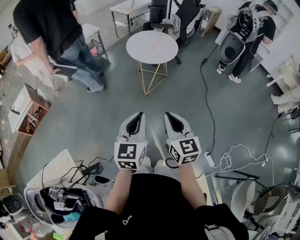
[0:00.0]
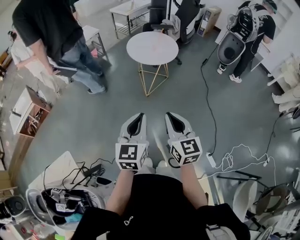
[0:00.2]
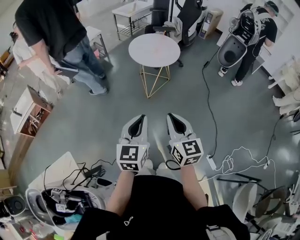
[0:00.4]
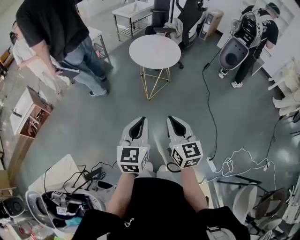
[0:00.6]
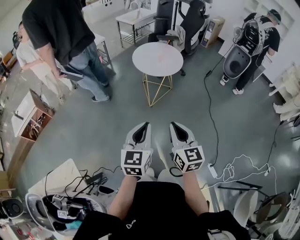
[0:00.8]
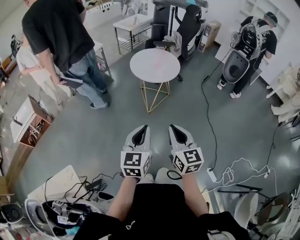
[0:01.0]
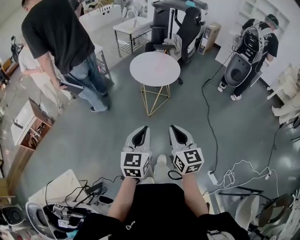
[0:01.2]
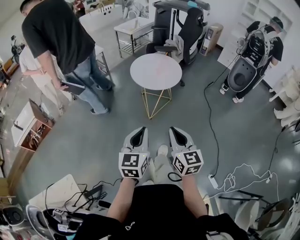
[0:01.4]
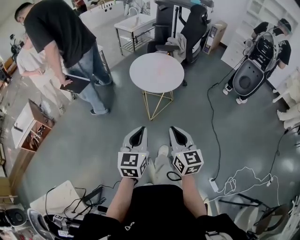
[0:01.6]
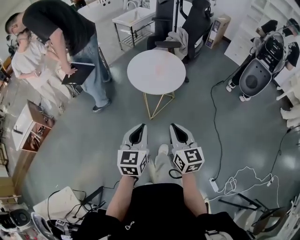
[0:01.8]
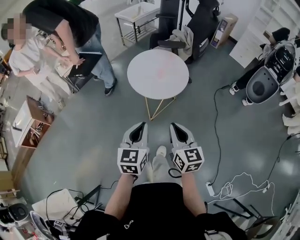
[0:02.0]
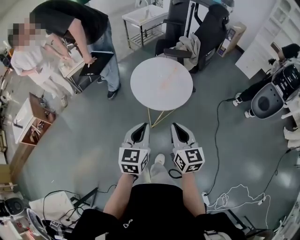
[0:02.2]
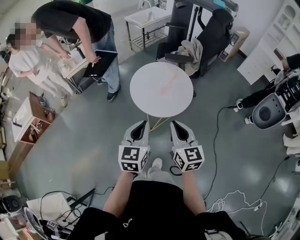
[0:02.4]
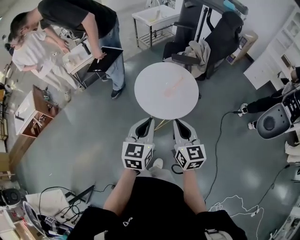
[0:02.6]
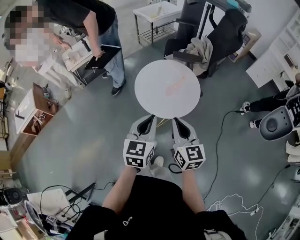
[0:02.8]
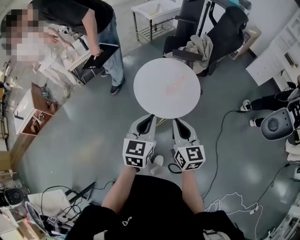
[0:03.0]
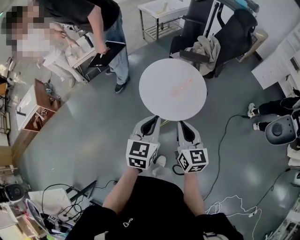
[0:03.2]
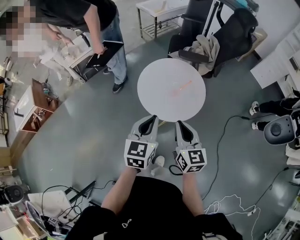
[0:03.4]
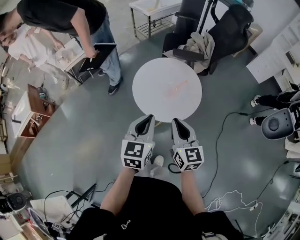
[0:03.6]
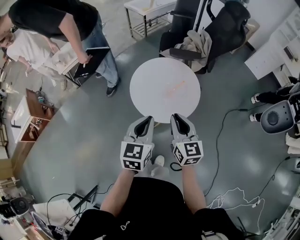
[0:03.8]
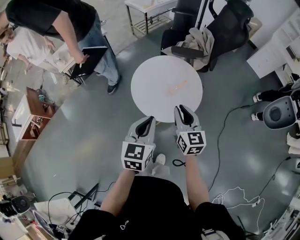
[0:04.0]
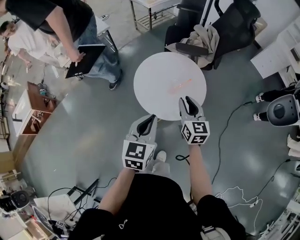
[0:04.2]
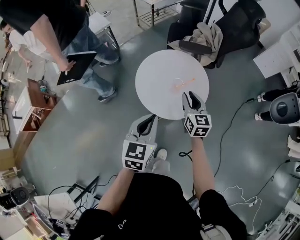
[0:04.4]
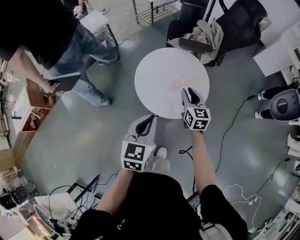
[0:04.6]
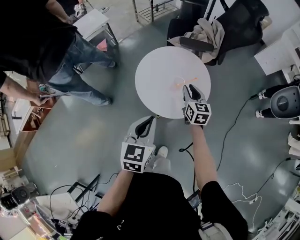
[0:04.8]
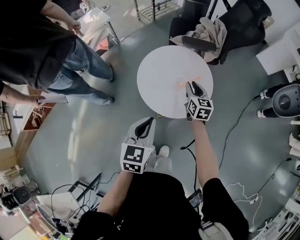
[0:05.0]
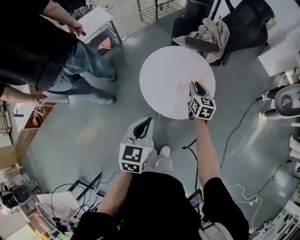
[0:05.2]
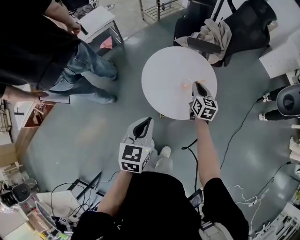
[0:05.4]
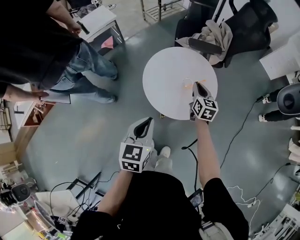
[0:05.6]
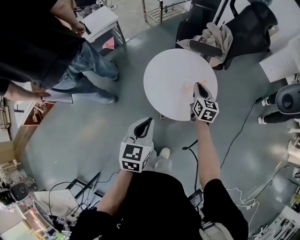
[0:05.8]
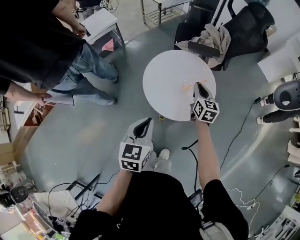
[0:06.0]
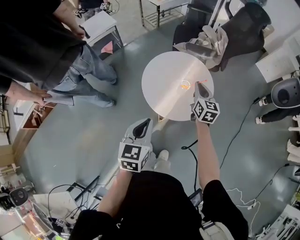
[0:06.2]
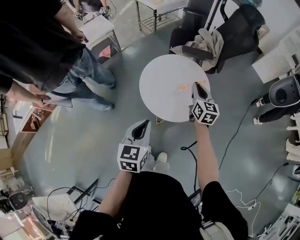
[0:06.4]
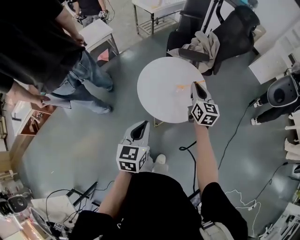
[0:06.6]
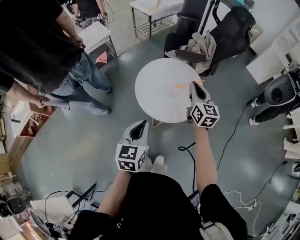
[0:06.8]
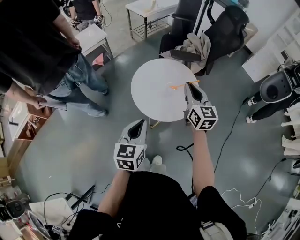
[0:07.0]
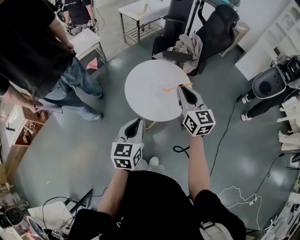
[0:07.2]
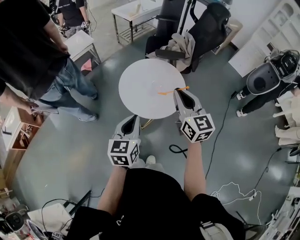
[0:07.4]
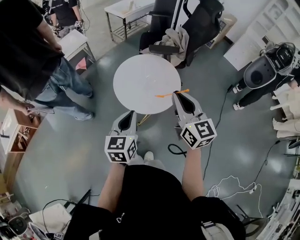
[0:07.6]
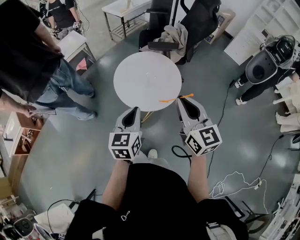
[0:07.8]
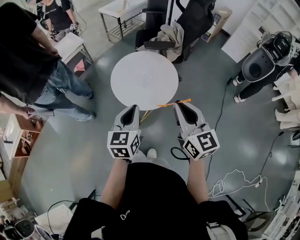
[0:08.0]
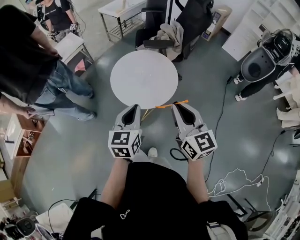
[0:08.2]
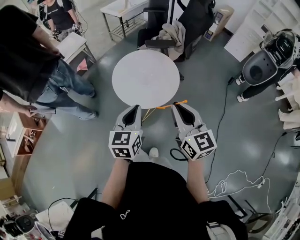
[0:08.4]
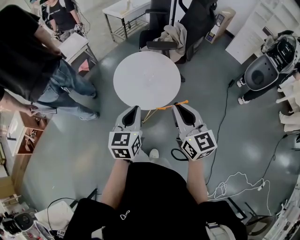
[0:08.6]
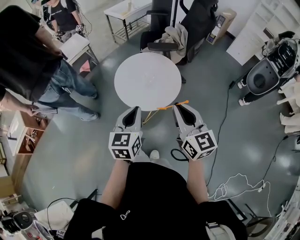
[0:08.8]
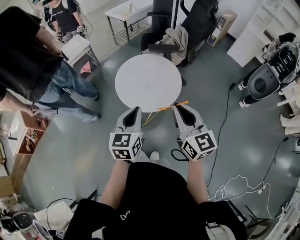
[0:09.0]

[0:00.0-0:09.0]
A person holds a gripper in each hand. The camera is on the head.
0:00.0 to 0:01.6: Both grippers move forward, roughly 15 cm.
0:01.6 to 0:03.0: Both grippers move forward, about 35 cm.
0:03.0 to 0:04.4: The left gripper goes some 5 cm forward, while the right gripper goes approximately 20 cm forward and downward, and opens.
0:04.4 to 0:06.0: The right gripper travels forward by roughly 5 cm, and closes its fingers; the left gripper goes approximately 5 cm to the left.
0:06.0 to 0:07.6: The left gripper ends up some 10 cm from where it was. Meanwhile the right gripper shifts about 30 cm upward and backward, and changes its angle by roughly 20 degrees.
0:07.6 to 0:09.0: The right gripper travels backward by roughly 5 cm.

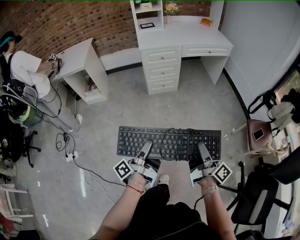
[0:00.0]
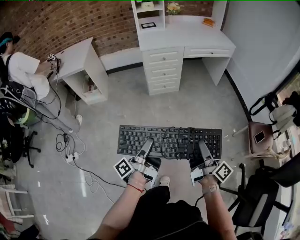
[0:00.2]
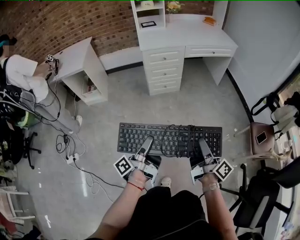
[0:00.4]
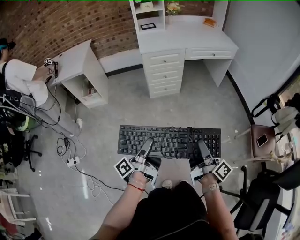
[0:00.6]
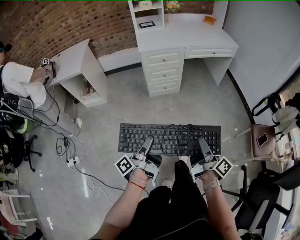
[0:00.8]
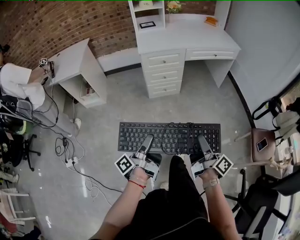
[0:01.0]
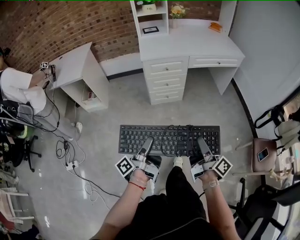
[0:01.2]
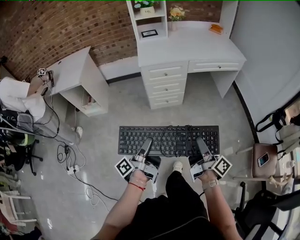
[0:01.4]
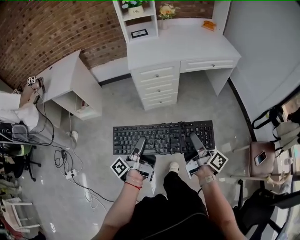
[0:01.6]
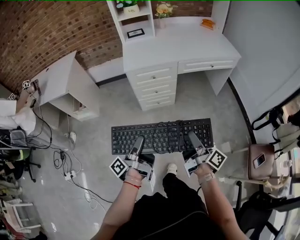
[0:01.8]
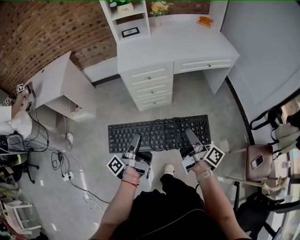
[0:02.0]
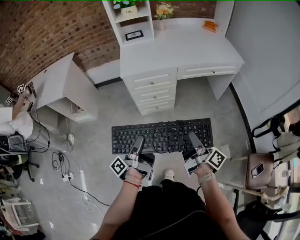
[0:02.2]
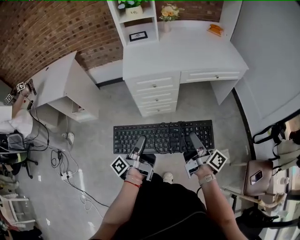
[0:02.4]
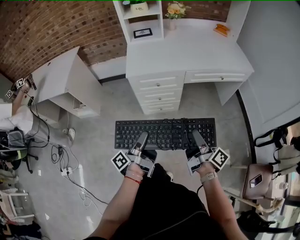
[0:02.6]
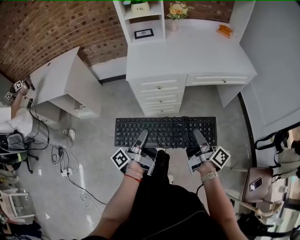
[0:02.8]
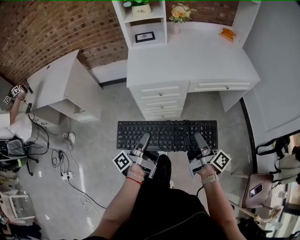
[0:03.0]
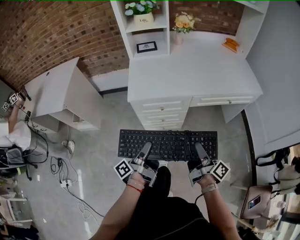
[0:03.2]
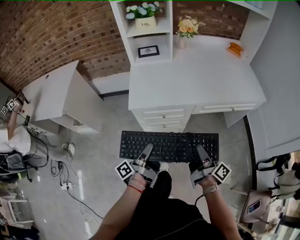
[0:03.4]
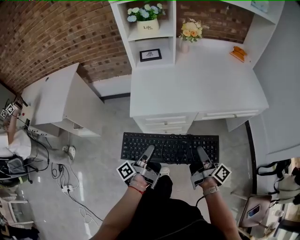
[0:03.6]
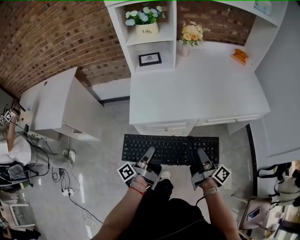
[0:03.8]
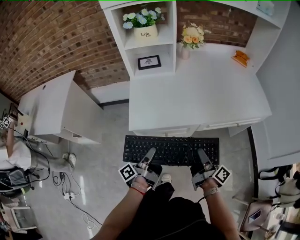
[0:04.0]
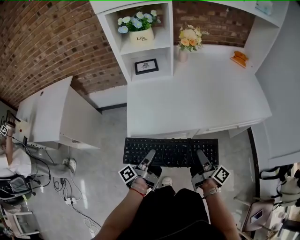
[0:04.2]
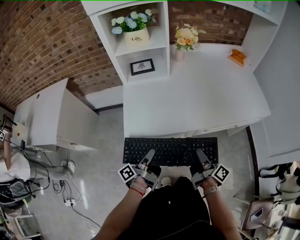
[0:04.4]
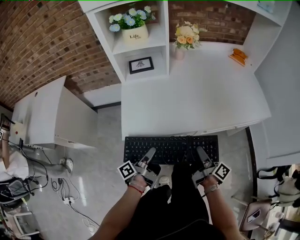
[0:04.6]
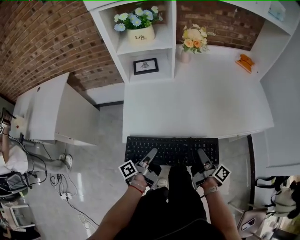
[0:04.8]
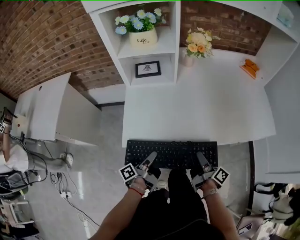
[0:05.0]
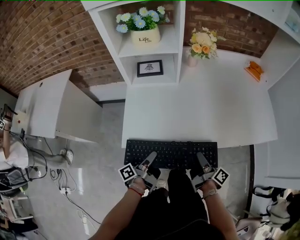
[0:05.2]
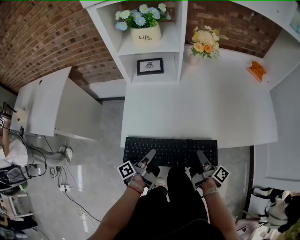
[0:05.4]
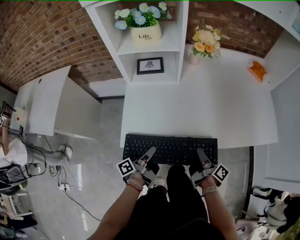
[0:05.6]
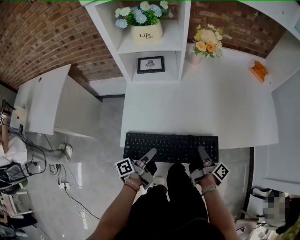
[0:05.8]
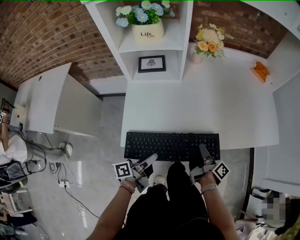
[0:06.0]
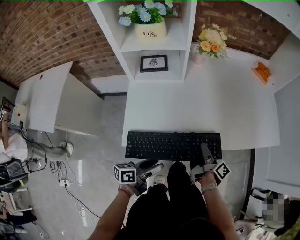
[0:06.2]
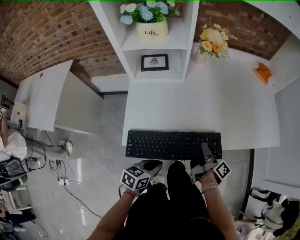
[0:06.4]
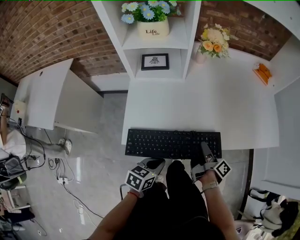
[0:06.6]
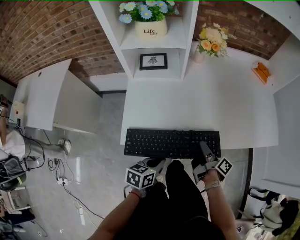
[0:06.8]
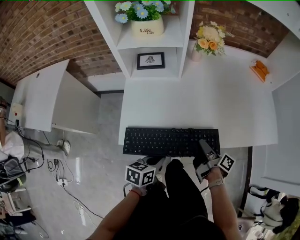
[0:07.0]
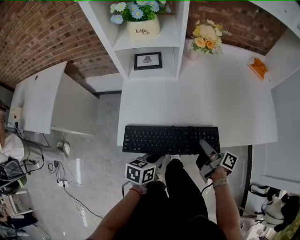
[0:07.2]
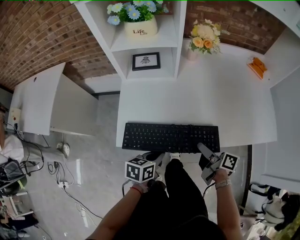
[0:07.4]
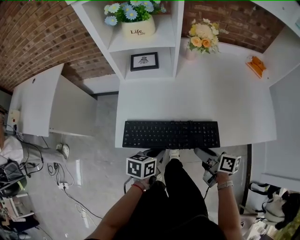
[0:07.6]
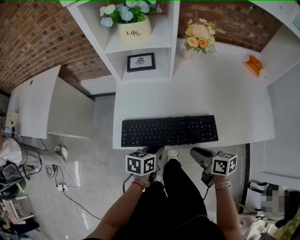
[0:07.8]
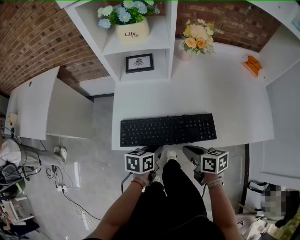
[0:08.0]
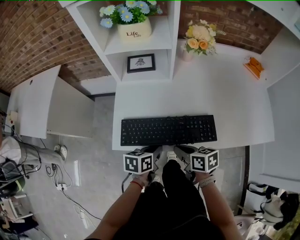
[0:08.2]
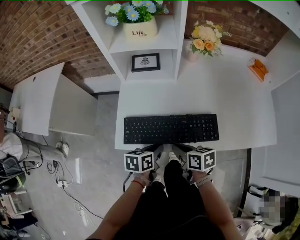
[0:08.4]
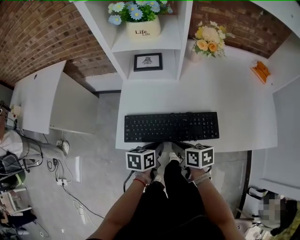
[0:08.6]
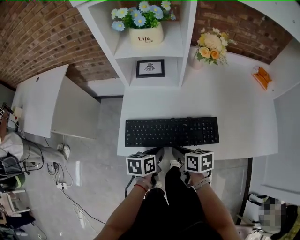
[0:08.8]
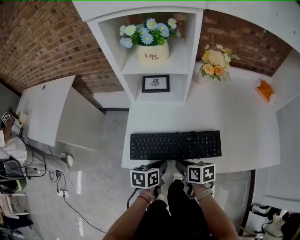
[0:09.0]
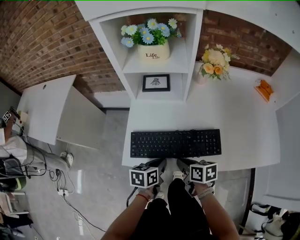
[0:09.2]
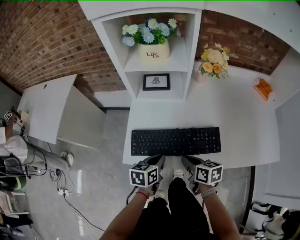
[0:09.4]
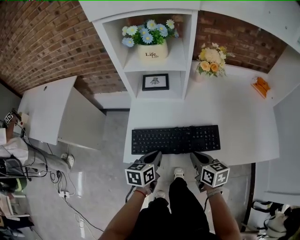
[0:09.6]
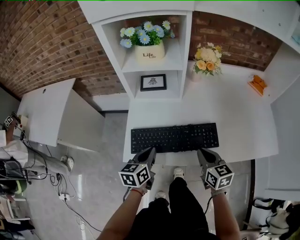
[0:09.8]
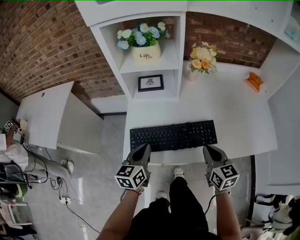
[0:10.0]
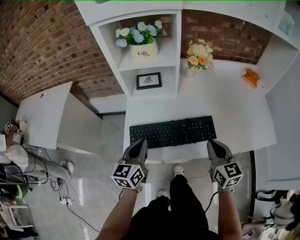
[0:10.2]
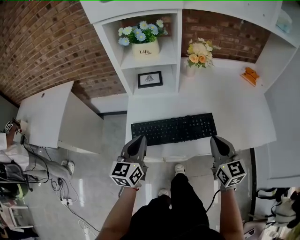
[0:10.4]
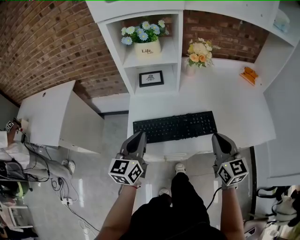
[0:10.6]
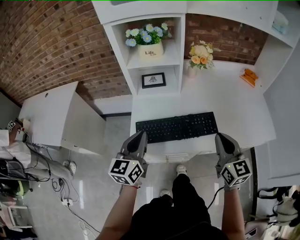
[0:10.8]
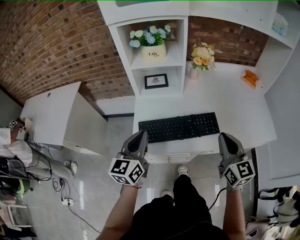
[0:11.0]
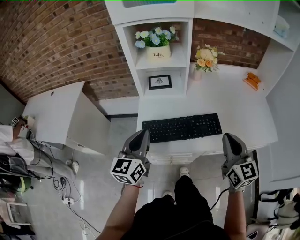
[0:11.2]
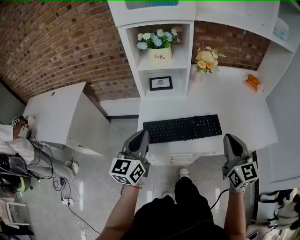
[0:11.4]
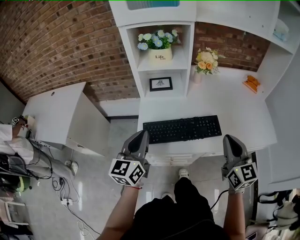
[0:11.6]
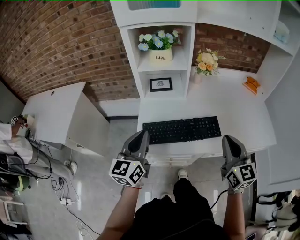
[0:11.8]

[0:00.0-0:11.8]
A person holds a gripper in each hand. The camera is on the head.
0:00.0 to 0:01.4: The right gripper shifts by approximately 25 cm.
0:01.4 to 0:03.0: The right gripper shifts by approximately 30 cm.
0:03.0 to 0:04.4: The right gripper changes place by roughly 25 cm.
0:04.4 to 0:06.0: The right gripper shifts by some 15 cm.
0:06.0 to 0:07.4: The right gripper turns by approximately 40 degrees, and opens its fingers.
0:07.4 to 0:08.8: The right gripper changes place by some 15 cm, changes its angle by about 40 degrees, and closes up.
0:08.8 to 0:10.4: The right gripper moves upward, about 15 cm, and swivels approximately 50 degrees.
0:10.4 to 0:11.8: The right gripper is displaced upward by some 10 cm.

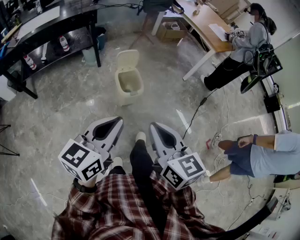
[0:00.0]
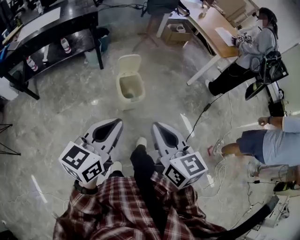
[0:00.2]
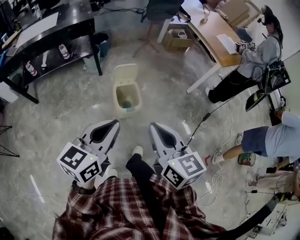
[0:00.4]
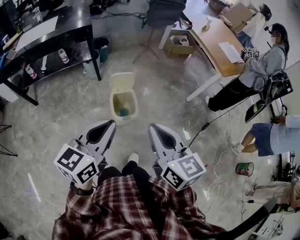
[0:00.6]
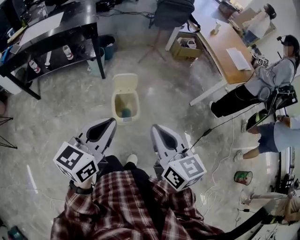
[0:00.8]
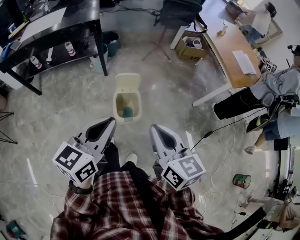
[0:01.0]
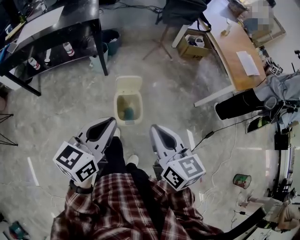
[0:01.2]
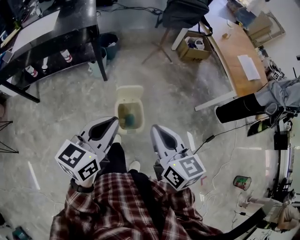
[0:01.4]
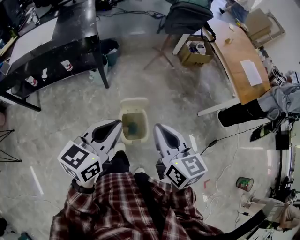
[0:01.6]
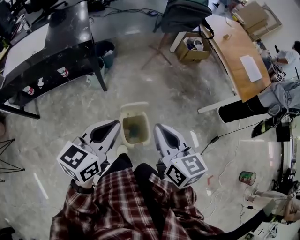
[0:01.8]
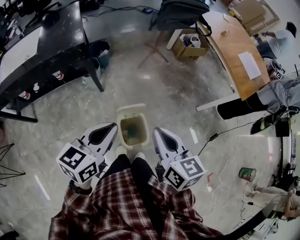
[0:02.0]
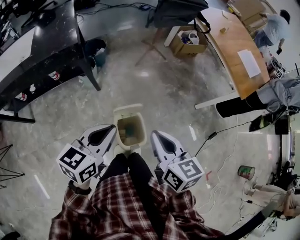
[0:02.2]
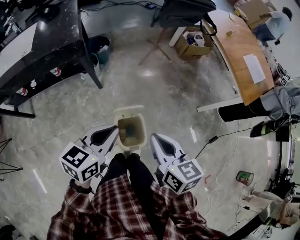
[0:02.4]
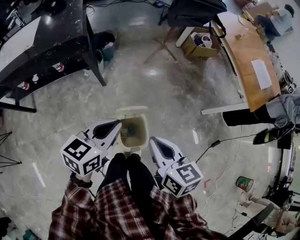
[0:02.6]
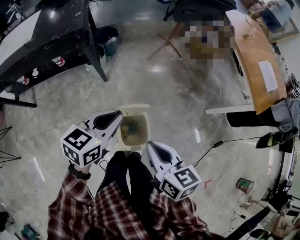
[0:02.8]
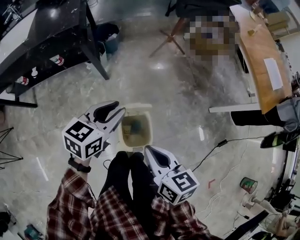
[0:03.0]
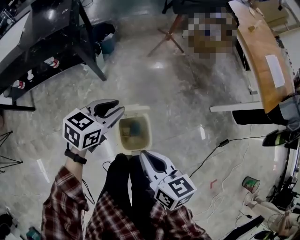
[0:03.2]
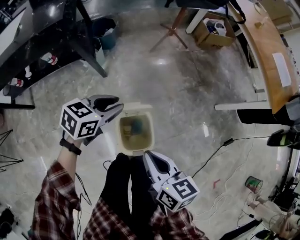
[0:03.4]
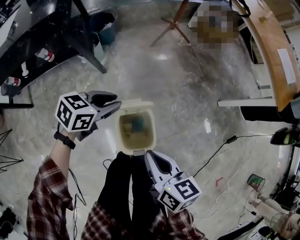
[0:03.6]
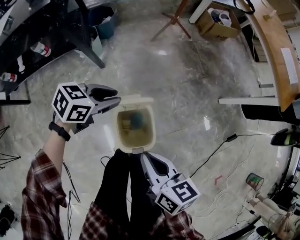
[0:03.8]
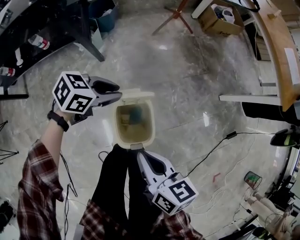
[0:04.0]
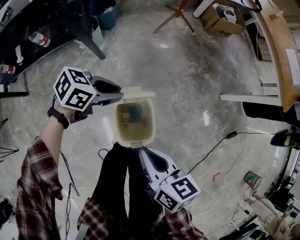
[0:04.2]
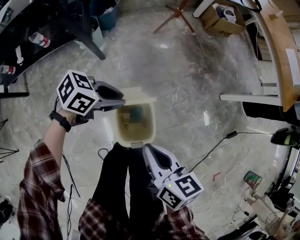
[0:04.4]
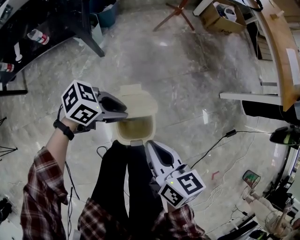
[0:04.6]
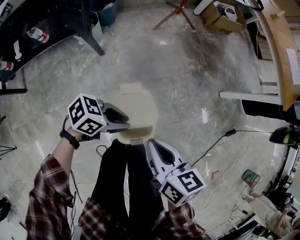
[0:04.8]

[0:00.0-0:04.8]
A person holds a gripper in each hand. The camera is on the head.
0:00.0 to 0:01.6: Both grippers are carried forward, roughly 40 cm.
0:01.6 to 0:03.2: The right gripper moves downward, some 20 cm, and rotates approximately 20 degrees, while the left gripper shifts about 30 cm downward and forward, turns by approximately 20 degrees, and opens.
0:03.2 to 0:04.8: Both grippers move downward, approximately 15 cm. The left gripper swivels about 40 degrees.
